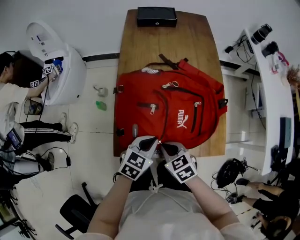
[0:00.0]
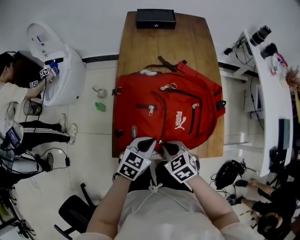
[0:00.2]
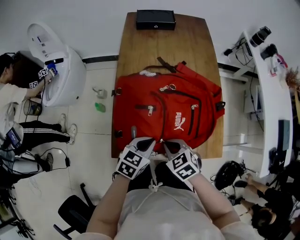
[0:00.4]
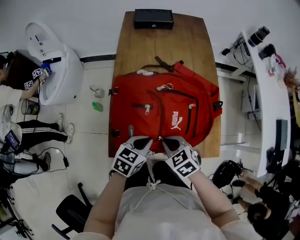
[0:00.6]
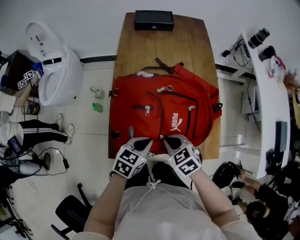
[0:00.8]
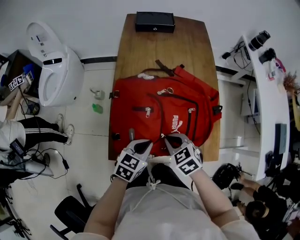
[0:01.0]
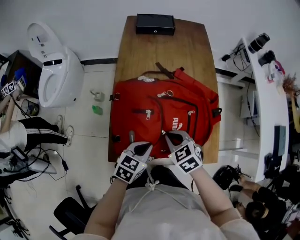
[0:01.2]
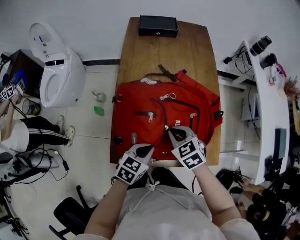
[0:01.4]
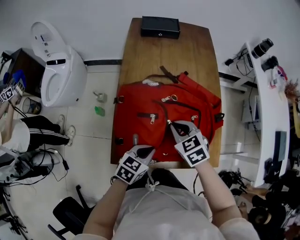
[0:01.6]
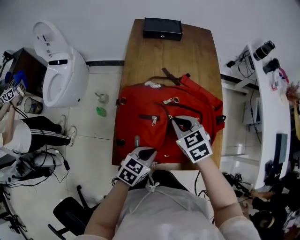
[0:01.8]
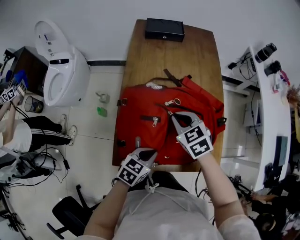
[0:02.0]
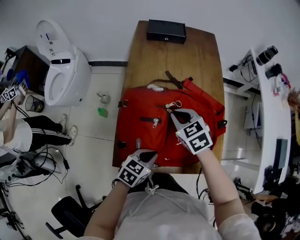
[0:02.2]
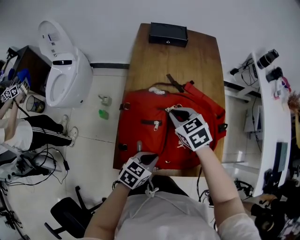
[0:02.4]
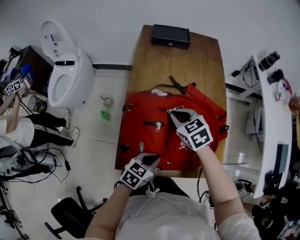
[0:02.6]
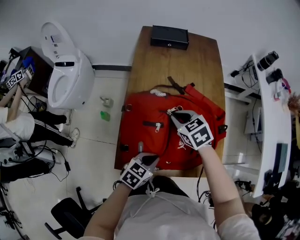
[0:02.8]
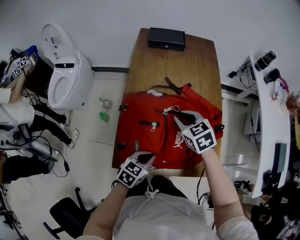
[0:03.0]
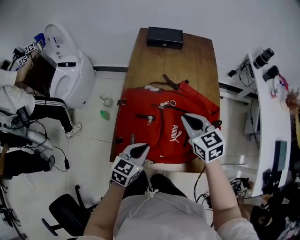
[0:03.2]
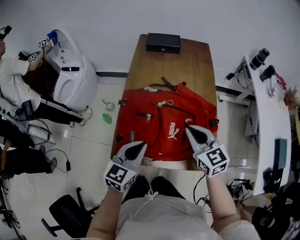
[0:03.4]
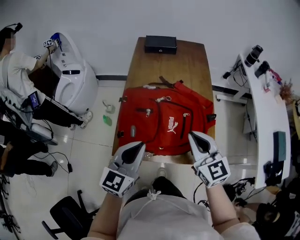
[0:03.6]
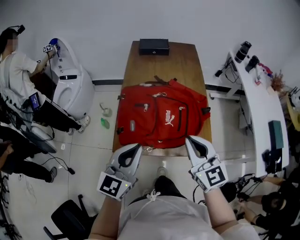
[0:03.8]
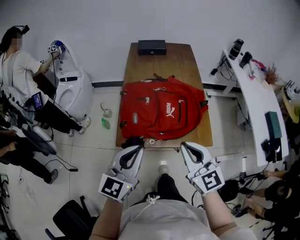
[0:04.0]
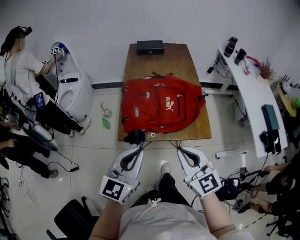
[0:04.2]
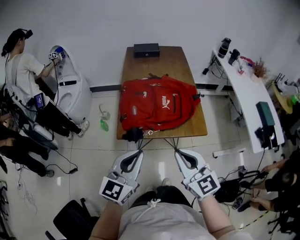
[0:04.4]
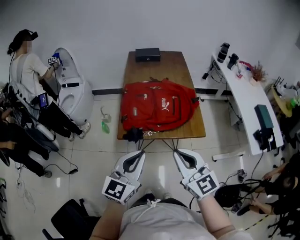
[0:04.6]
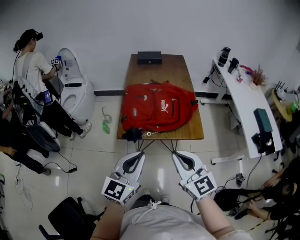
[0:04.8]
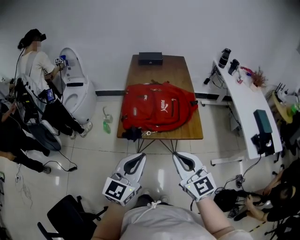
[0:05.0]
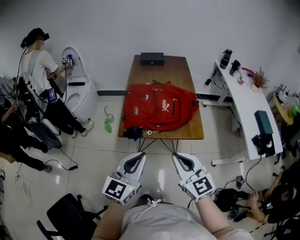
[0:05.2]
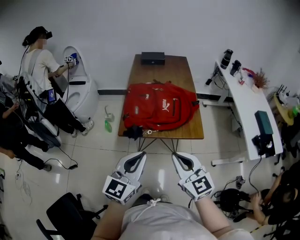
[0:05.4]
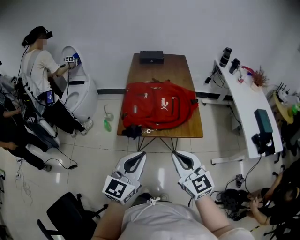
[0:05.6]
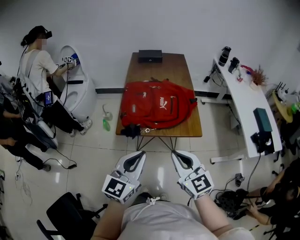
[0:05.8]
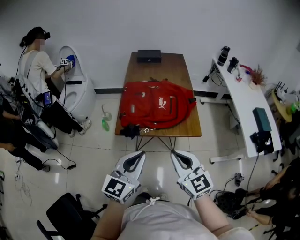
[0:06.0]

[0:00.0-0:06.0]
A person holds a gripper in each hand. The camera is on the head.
0:00.0 to 0:01.6: The right gripper heads forward and upward, covering about 15 cm.
0:01.6 to 0:03.0: The right gripper is displaced forward by about 5 cm.
0:03.0 to 0:04.4: The right gripper is displaced backward by some 40 cm, and tilts its fingers about 40 degrees upward; the left gripper is displaced backward and upward by about 35 cm, and points its fingers approximately 40 degrees further upward.
0:04.4 to 0:06.0: The left gripper heads backward, covering approximately 5 cm.

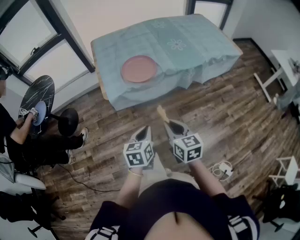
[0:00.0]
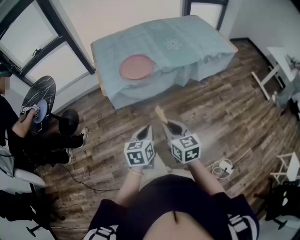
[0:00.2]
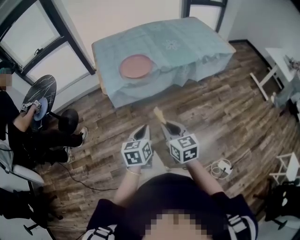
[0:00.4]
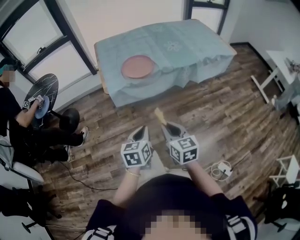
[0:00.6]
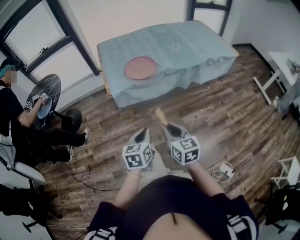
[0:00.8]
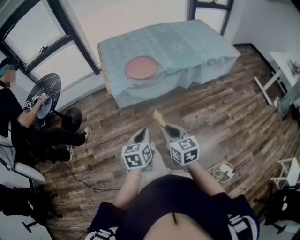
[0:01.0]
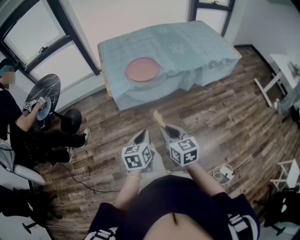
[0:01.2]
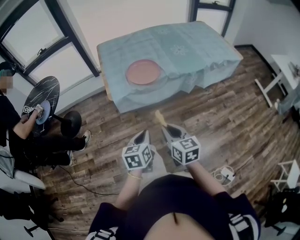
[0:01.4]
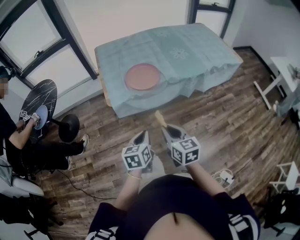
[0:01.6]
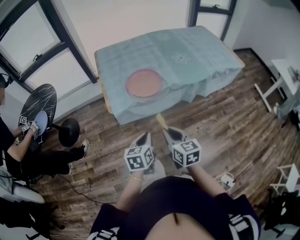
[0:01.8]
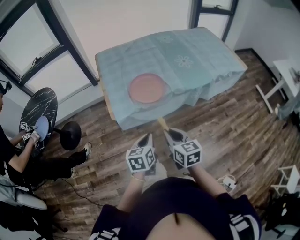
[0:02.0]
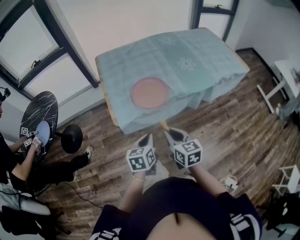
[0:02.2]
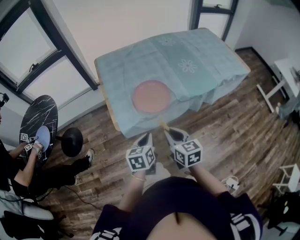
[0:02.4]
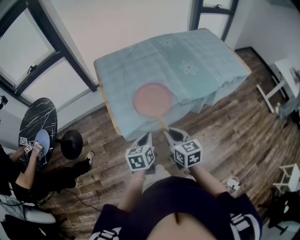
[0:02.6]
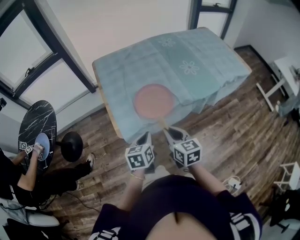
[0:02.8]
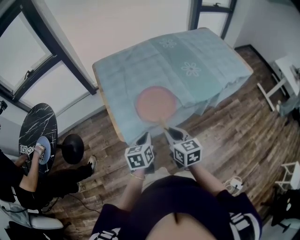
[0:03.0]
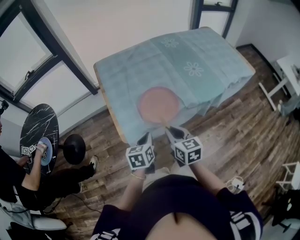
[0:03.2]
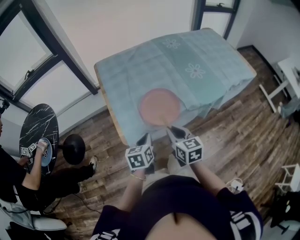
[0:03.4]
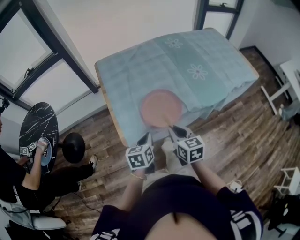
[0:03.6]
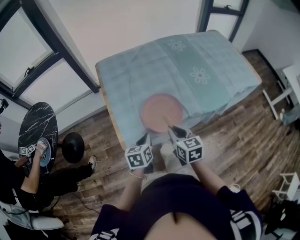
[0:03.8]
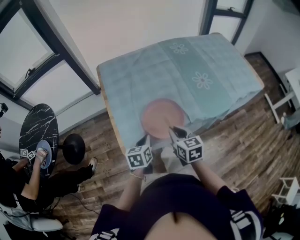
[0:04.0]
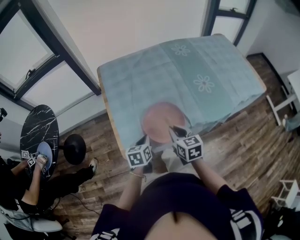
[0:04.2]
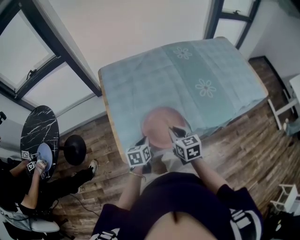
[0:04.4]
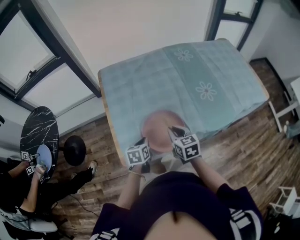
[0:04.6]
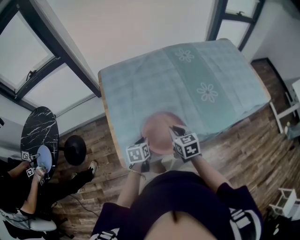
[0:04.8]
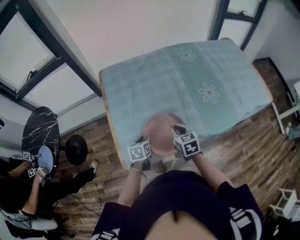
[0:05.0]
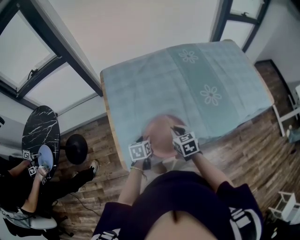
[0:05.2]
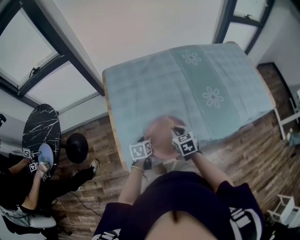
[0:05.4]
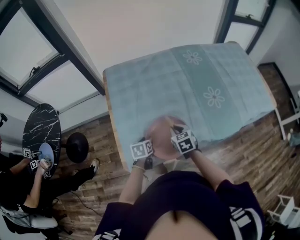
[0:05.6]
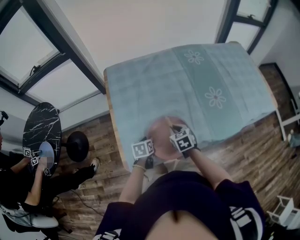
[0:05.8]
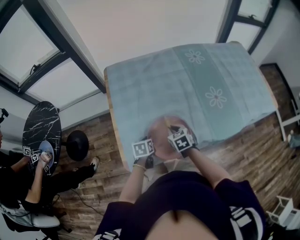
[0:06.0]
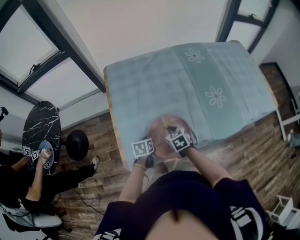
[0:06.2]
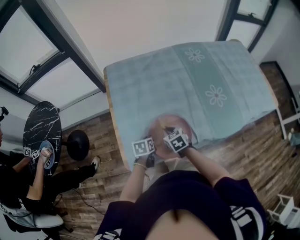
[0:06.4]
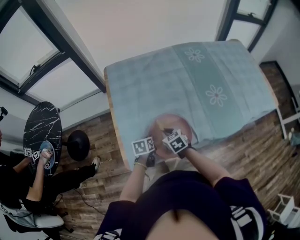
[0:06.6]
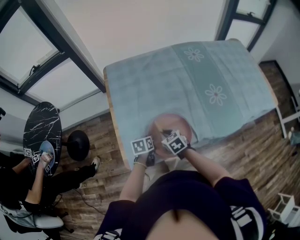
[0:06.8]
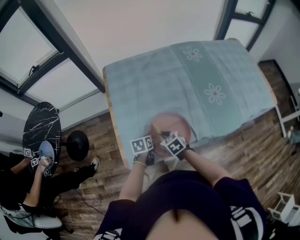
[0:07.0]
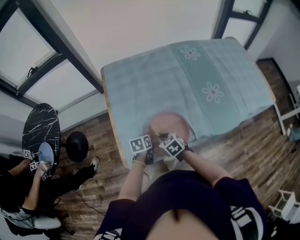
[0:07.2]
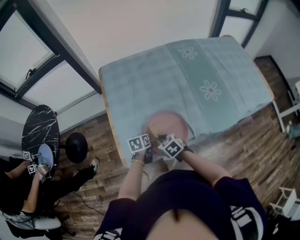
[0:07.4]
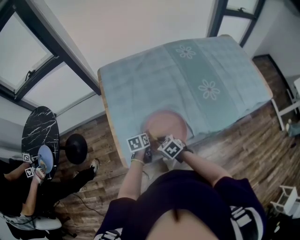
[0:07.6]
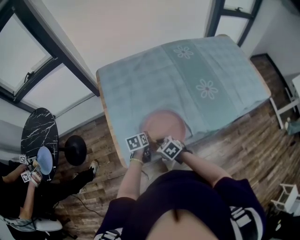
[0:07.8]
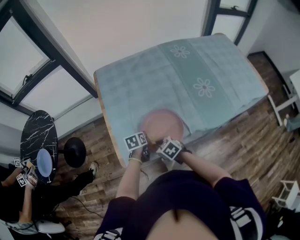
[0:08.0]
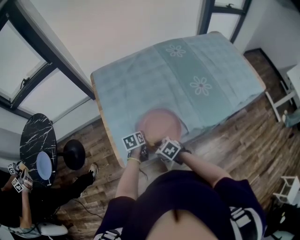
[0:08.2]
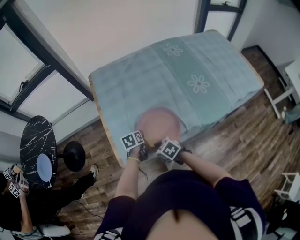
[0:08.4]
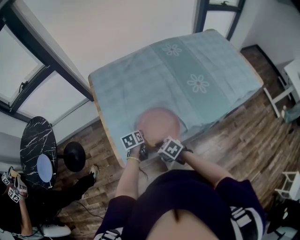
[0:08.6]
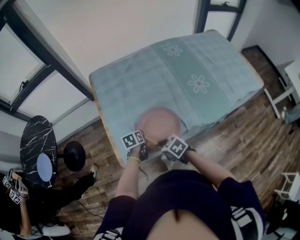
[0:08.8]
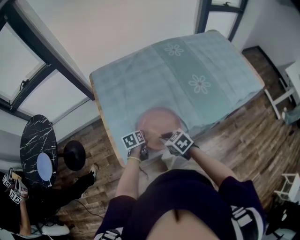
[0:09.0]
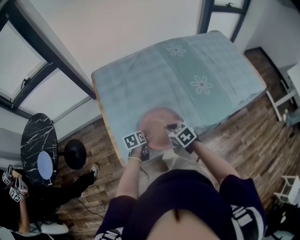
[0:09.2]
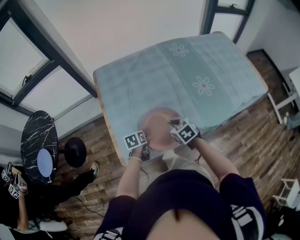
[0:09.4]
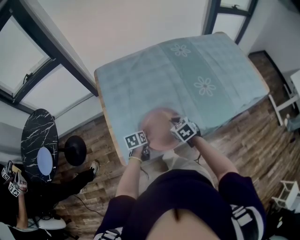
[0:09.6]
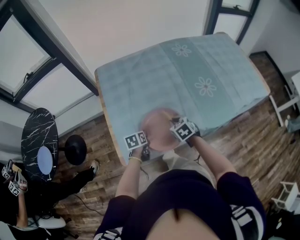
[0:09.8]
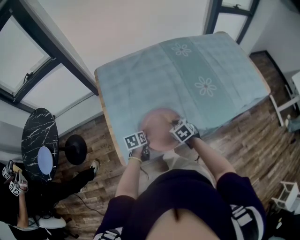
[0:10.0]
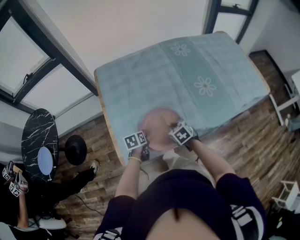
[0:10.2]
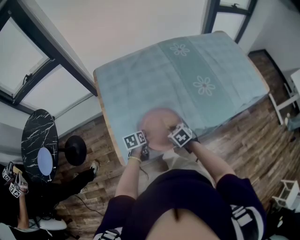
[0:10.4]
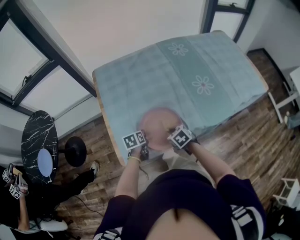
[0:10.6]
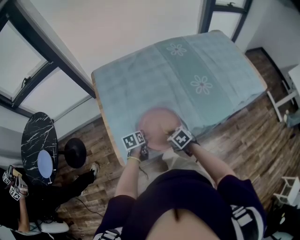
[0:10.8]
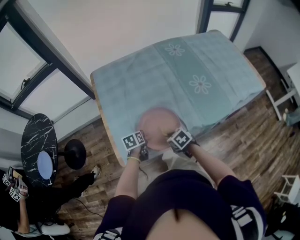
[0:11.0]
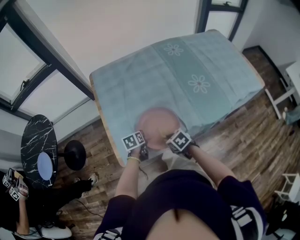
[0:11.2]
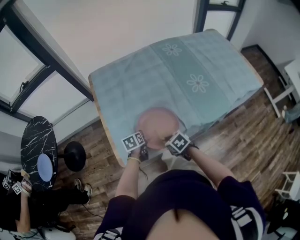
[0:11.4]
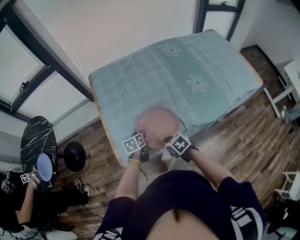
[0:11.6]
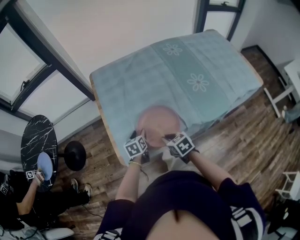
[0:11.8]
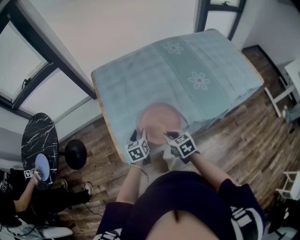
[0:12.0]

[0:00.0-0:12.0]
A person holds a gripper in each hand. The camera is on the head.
0:00.0 to 0:01.6: The left gripper travels backward and back again, approximately 10 cm each way; the right gripper goes backward and returns, roughly 10 cm each way.
0:01.6 to 0:03.0: The two grippers go roughly 25 cm forward.
0:03.0 to 0:04.4: The right gripper shifts approximately 15 cm forward. Meanwhile the left gripper is displaced forward and downward by about 15 cm.
0:04.4 to 0:06.0: Both grippers move downward and forward, approximately 10 cm. The right gripper changes its angle by some 20 degrees.
0:06.0 to 0:07.6: The right gripper shifts about 10 cm backward and to the left.
0:07.6 to 0:09.0: The right gripper travels upward by approximately 5 cm.
0:09.0 to 0:10.4: The right gripper is displaced downward and to the right by approximately 10 cm.
0:10.4 to 0:12.0: Both grippers move upward, some 5 cm. The right gripper turns by some 20 degrees, while the left gripper turns by approximately 20 degrees, and opens its fingers.

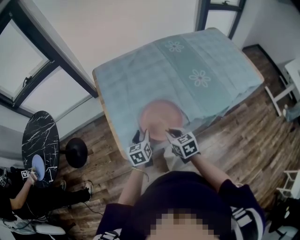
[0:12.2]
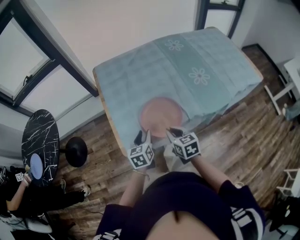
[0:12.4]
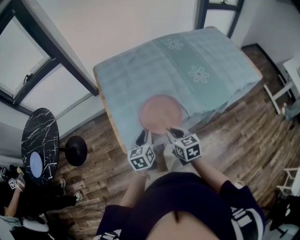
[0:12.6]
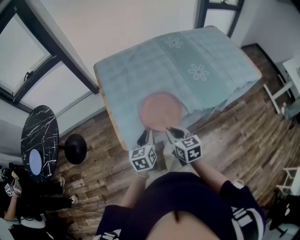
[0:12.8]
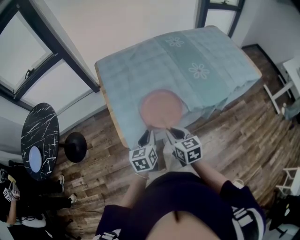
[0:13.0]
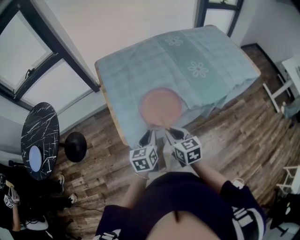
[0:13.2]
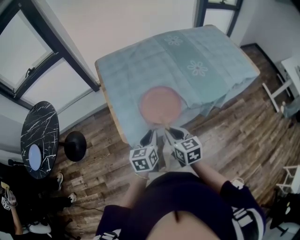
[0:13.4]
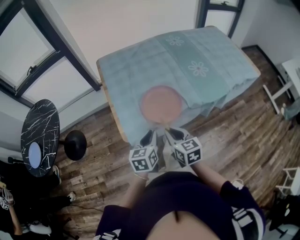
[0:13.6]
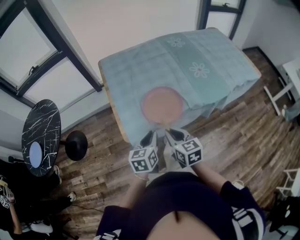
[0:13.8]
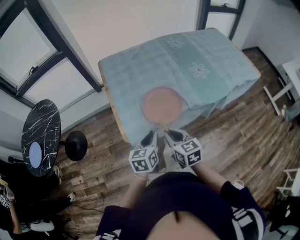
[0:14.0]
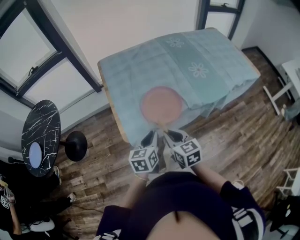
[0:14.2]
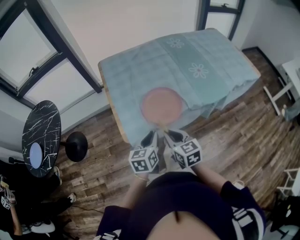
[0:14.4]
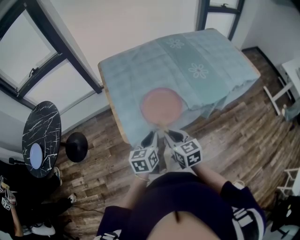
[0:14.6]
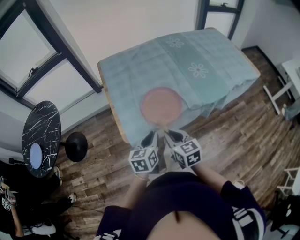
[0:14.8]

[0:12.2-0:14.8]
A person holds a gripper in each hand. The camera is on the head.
0:12.2 to 0:13.4: The grippers both shift backward and upward by about 15 cm. The left gripper closes up.
0:13.4 to 0:14.8: The grippers move only a little.

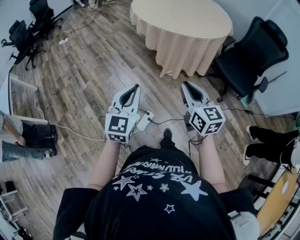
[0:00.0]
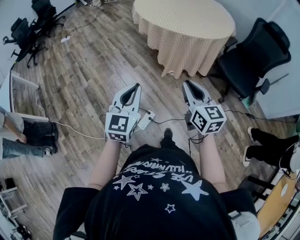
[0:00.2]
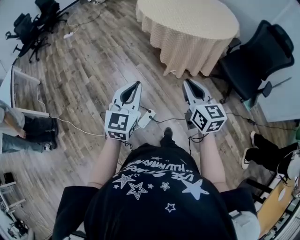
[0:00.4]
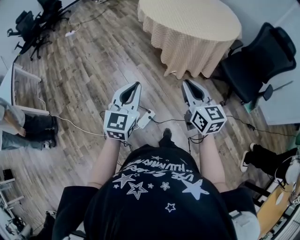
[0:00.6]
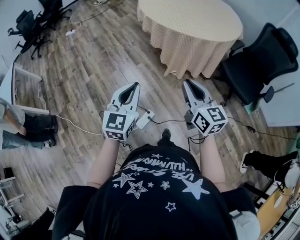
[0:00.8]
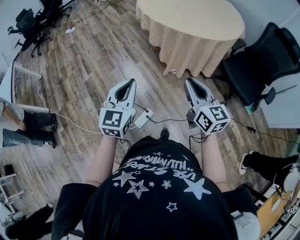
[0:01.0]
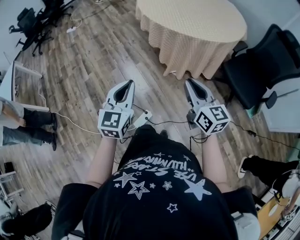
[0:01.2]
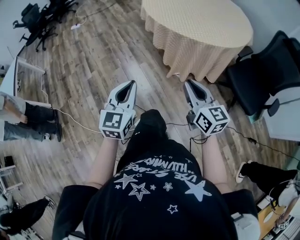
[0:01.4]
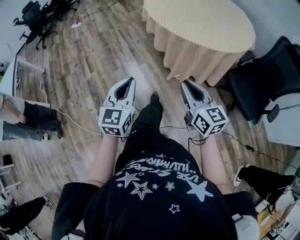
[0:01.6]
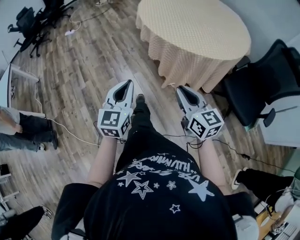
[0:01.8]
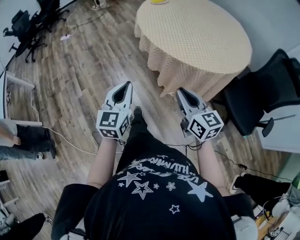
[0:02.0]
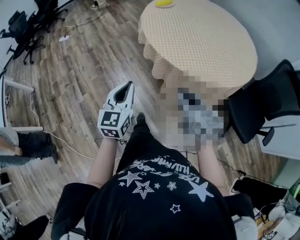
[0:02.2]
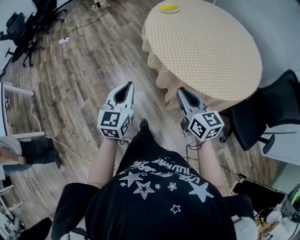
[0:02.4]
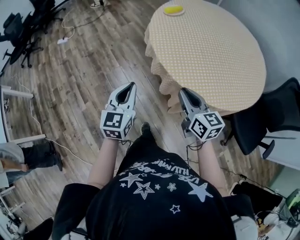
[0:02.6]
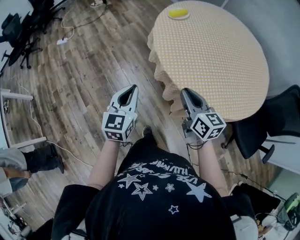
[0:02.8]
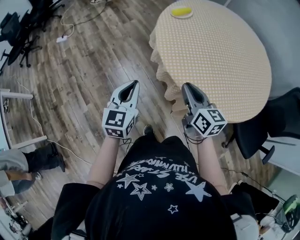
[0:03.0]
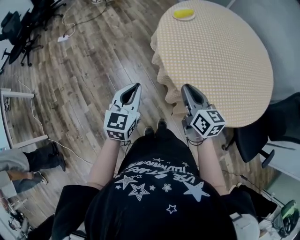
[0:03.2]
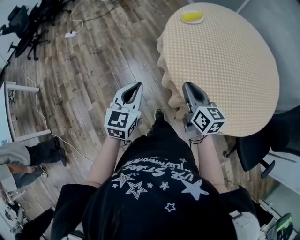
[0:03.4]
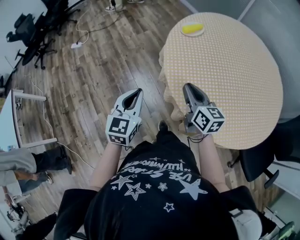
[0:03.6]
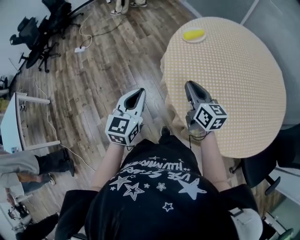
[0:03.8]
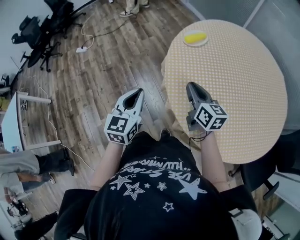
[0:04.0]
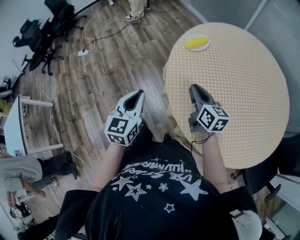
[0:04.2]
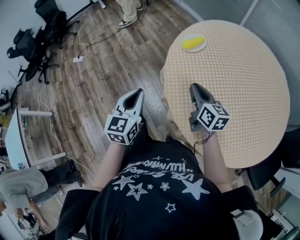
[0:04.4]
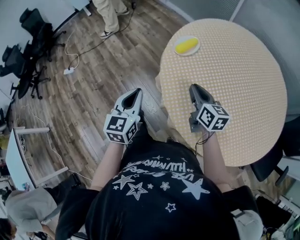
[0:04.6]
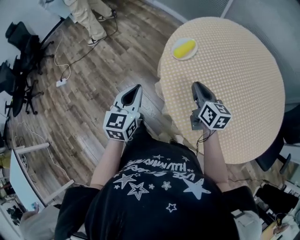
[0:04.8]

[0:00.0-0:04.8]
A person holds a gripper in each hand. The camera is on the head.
0:00.0 to 0:01.6: The grippers both shift forward by about 15 cm.
0:01.6 to 0:03.2: The pair of grippers is taken forward, approximately 50 cm.
0:03.2 to 0:04.8: The two grippers go about 30 cm forward.
